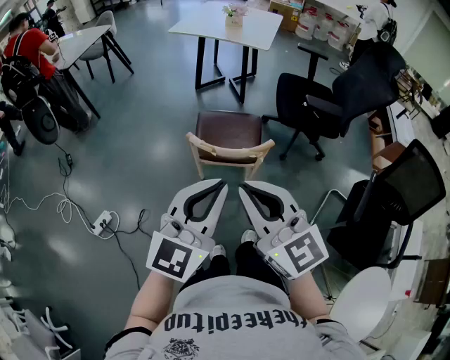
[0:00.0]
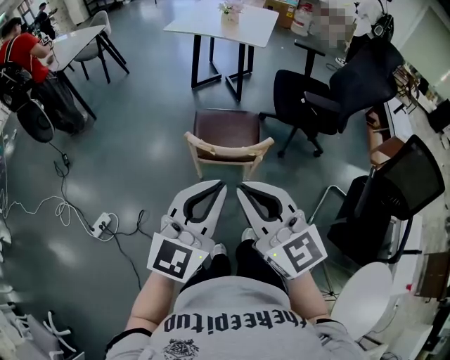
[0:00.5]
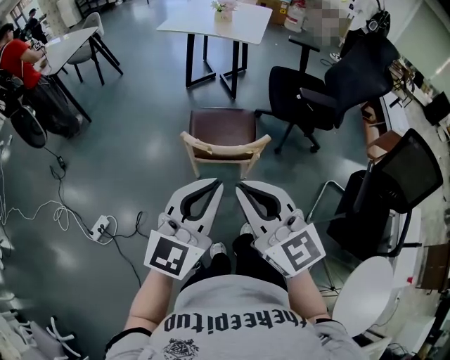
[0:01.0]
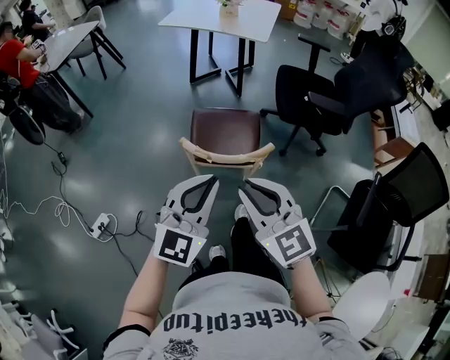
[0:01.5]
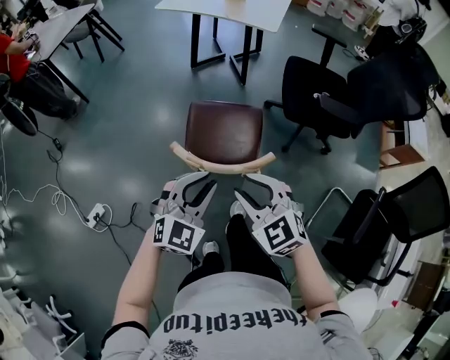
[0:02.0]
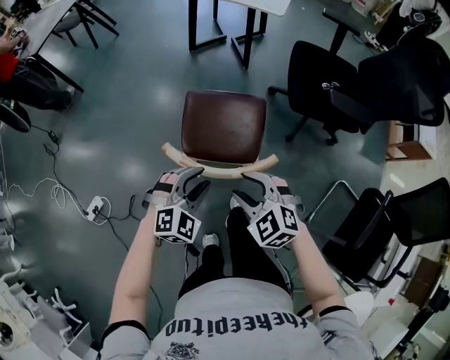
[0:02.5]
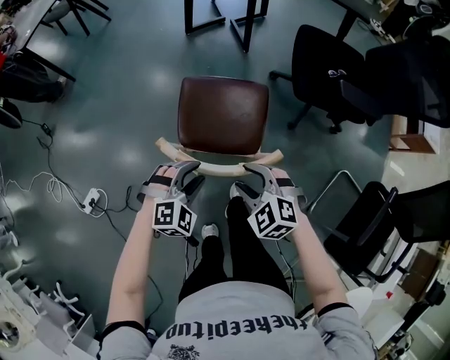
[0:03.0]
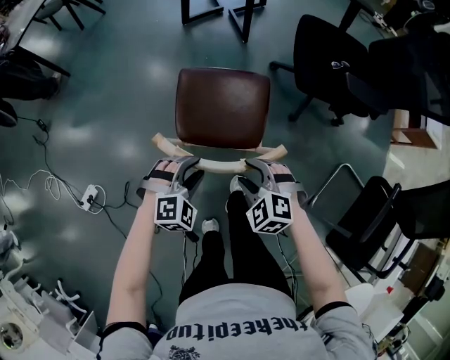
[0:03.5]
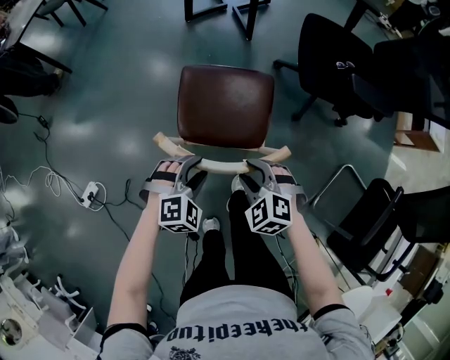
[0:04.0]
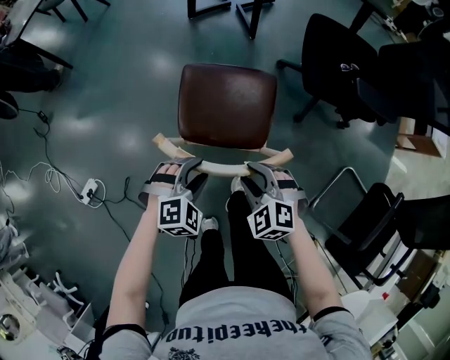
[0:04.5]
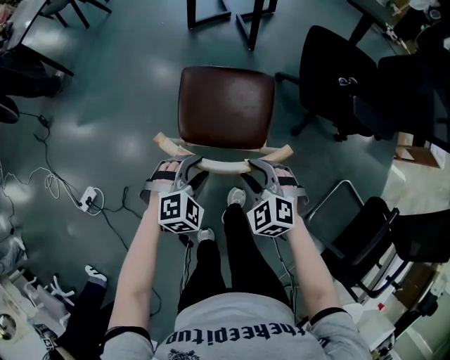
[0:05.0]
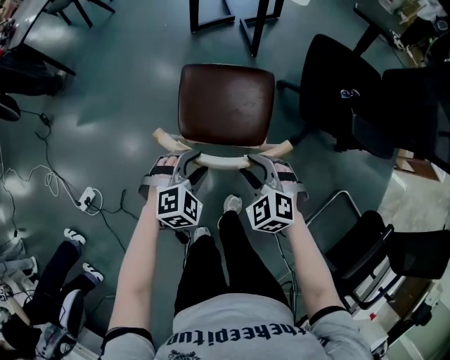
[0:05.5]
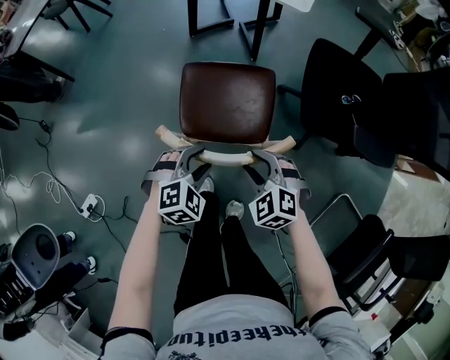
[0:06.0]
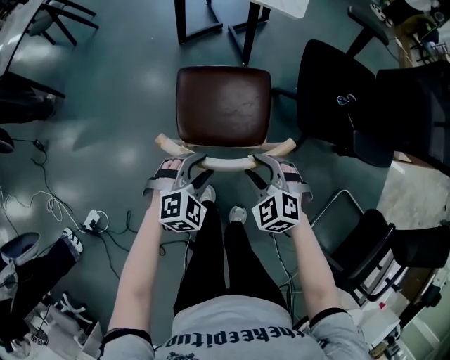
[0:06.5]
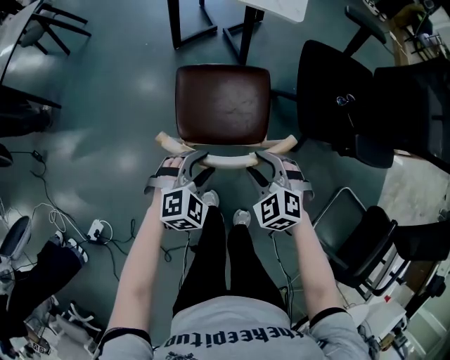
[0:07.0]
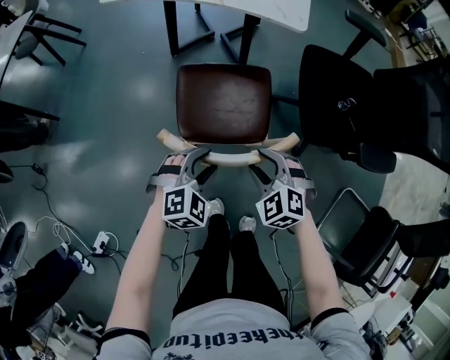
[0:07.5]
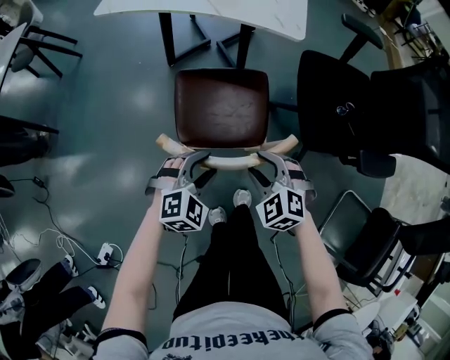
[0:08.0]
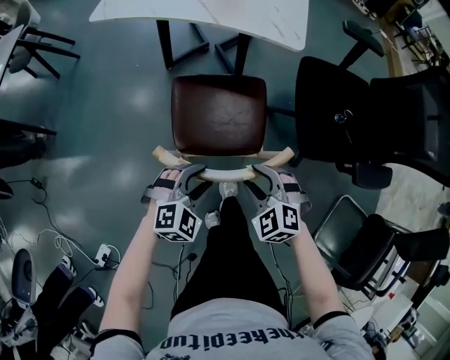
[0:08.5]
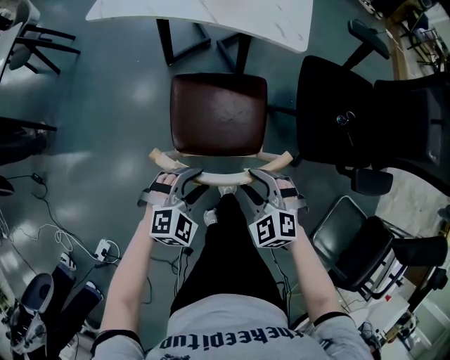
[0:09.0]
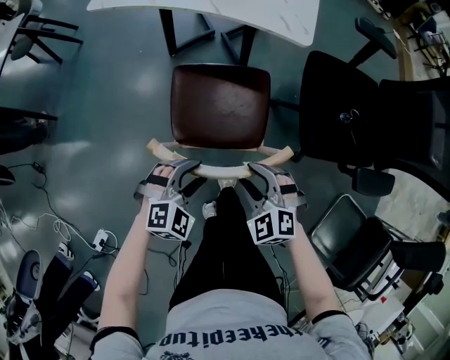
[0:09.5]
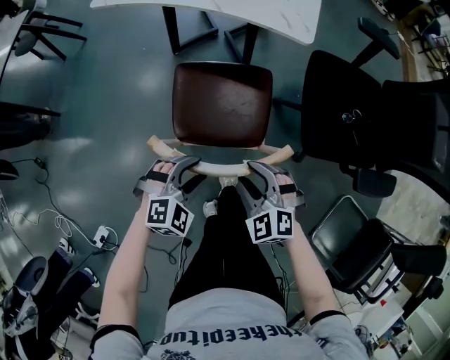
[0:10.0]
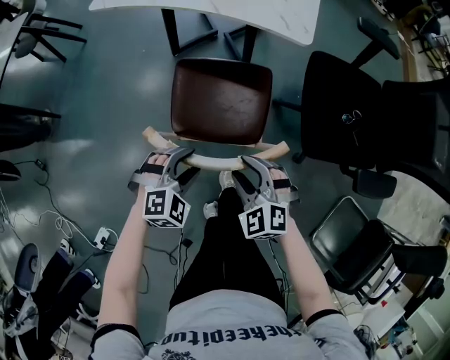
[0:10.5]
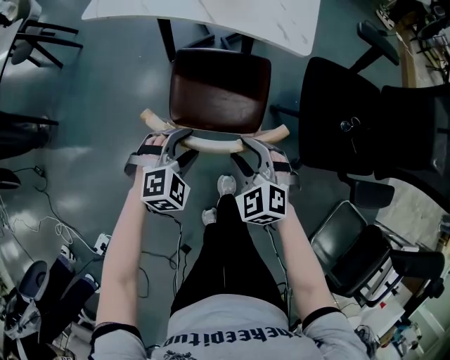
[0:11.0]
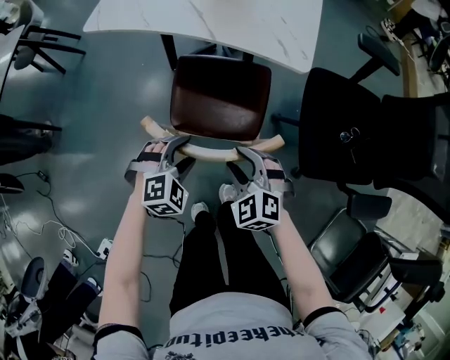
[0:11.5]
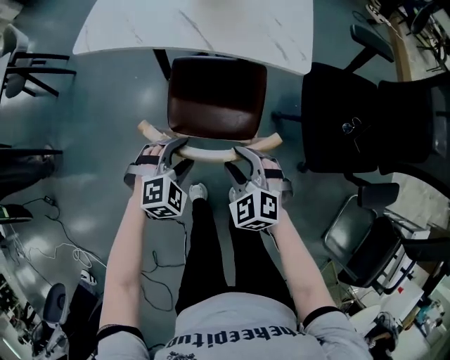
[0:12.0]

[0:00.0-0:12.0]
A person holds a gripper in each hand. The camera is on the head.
0:00.0 to 0:02.0: The two grippers go approximately 25 cm downward and forward. The left gripper rotates some 30 degrees. The right gripper tilts its fingers approximately 30 degrees downward, and opens its fingers.
0:02.0 to 0:04.0: The two grippers go roughly 20 cm downward. The left gripper angles its fingers downward, by some 30 degrees, and opens up, while the right gripper turns by about 30 degrees.
0:04.0 to 0:06.0: Both grippers move forward, about 15 cm.
0:06.0 to 0:08.0: Both grippers travel together forward, approximately 15 cm.
0:08.0 to 0:10.0: The grippers move only a little.
0:10.0 to 0:12.0: The right gripper goes about 15 cm forward and to the left. Meanwhile the left gripper shifts approximately 15 cm forward.

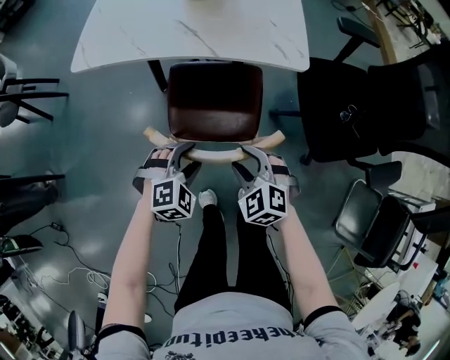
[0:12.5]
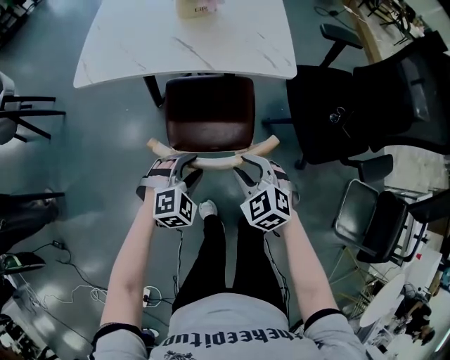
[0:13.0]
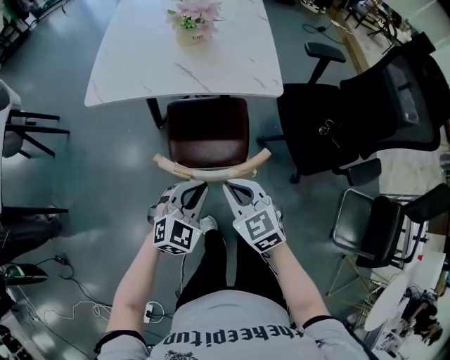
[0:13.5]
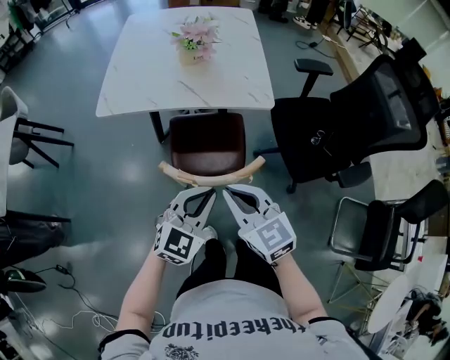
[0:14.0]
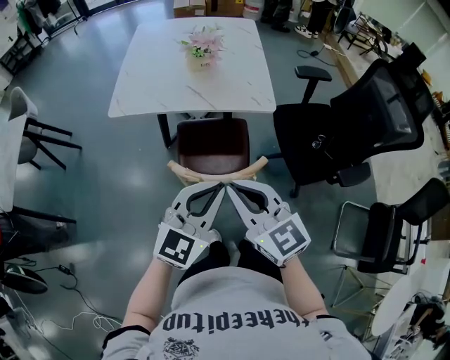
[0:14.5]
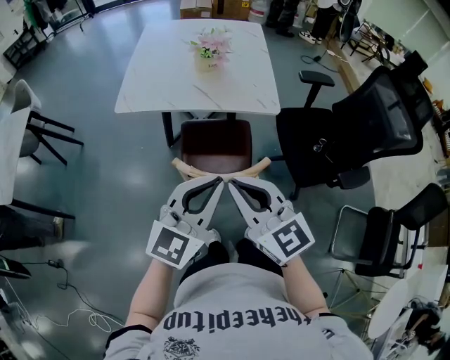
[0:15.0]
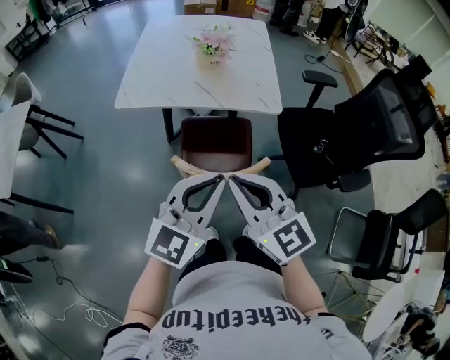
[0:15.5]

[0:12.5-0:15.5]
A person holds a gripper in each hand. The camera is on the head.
0:12.5 to 0:14.0: Both grippers travel together upward, approximately 20 cm. The right gripper swivels roughly 40 degrees, and closes up; the left gripper points its fingers approximately 30 degrees further upward, and closes its fingers.
0:14.0 to 0:15.5: Both grippers travel together upward, roughly 15 cm.

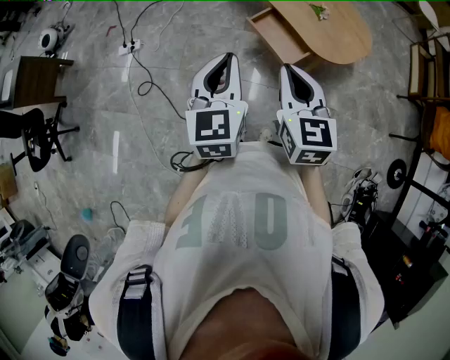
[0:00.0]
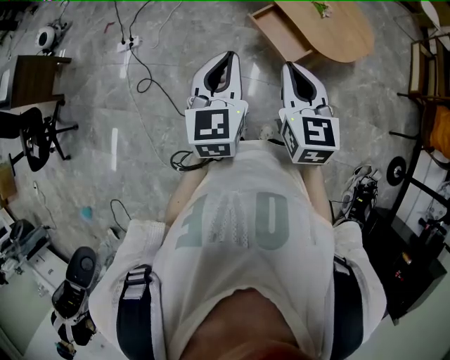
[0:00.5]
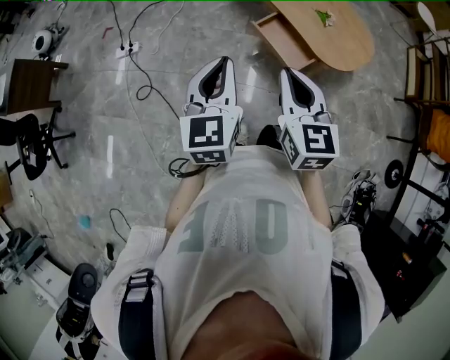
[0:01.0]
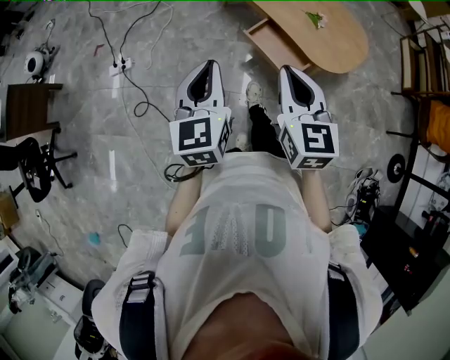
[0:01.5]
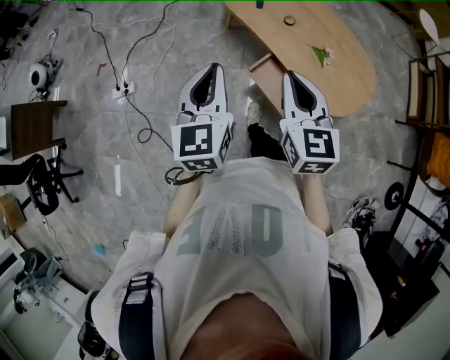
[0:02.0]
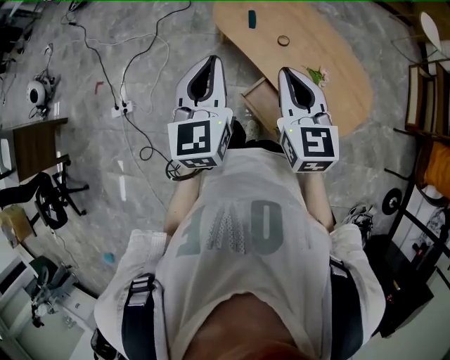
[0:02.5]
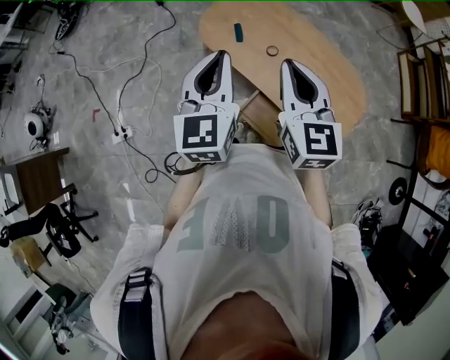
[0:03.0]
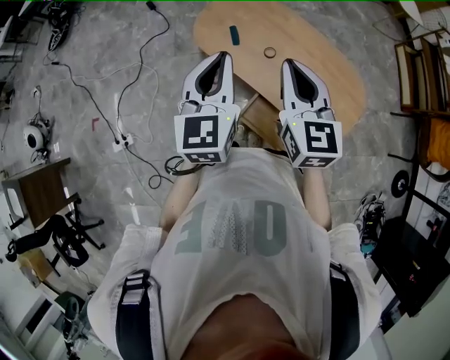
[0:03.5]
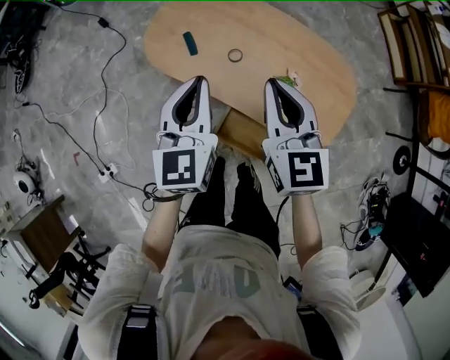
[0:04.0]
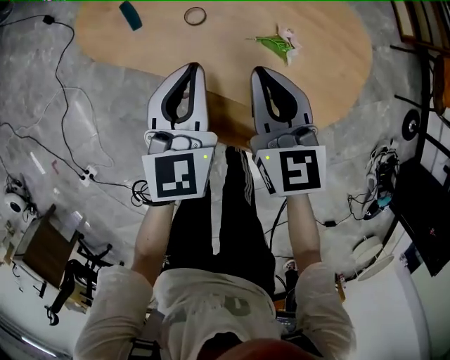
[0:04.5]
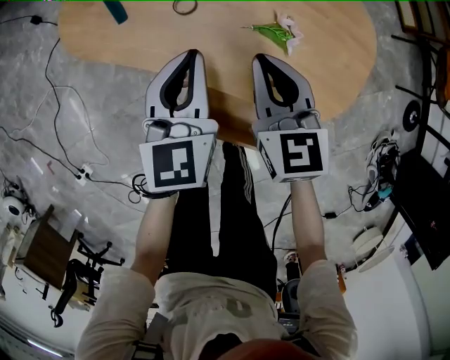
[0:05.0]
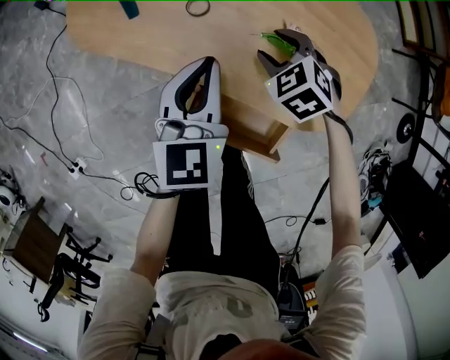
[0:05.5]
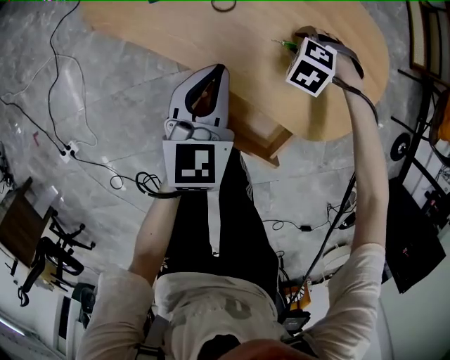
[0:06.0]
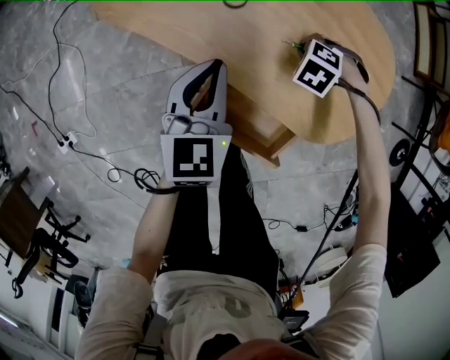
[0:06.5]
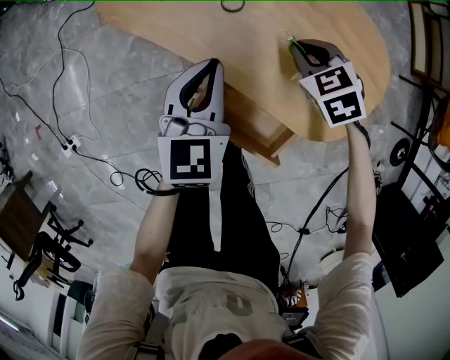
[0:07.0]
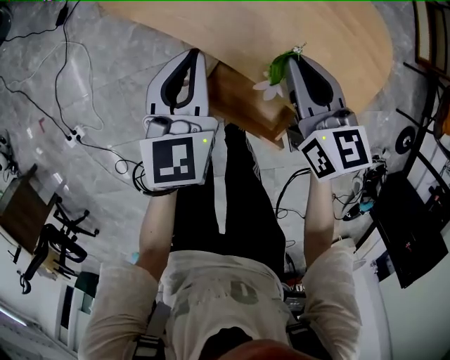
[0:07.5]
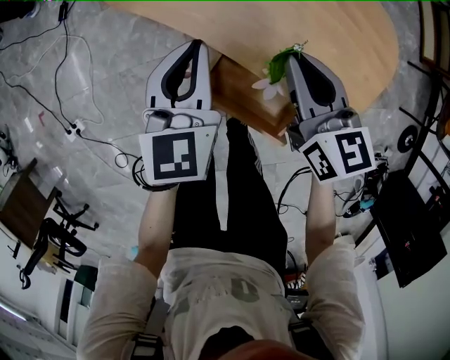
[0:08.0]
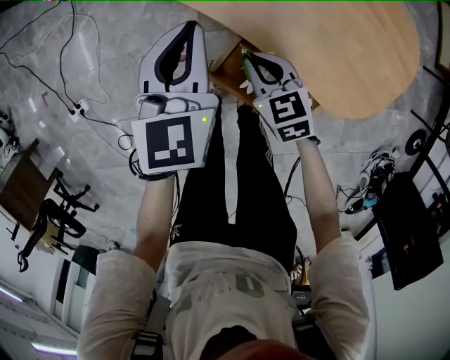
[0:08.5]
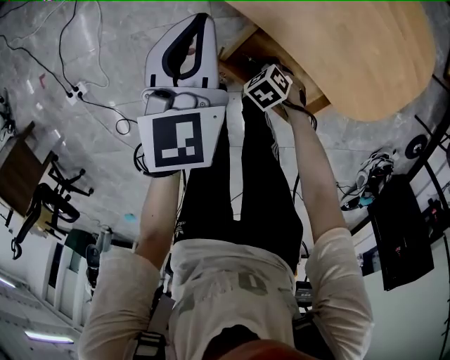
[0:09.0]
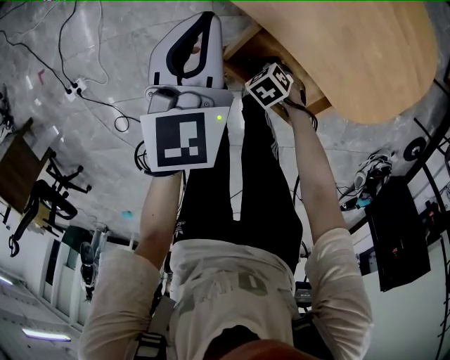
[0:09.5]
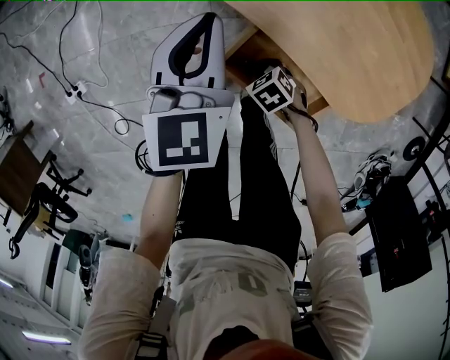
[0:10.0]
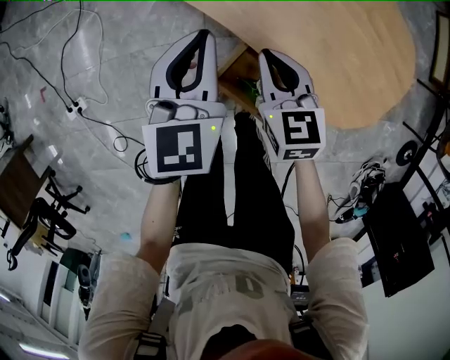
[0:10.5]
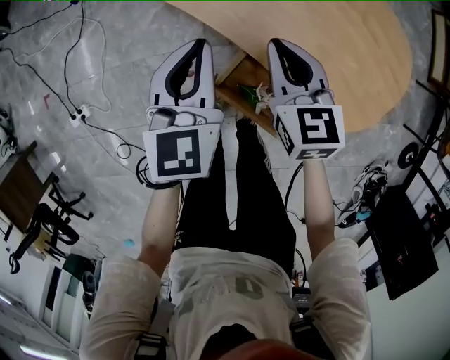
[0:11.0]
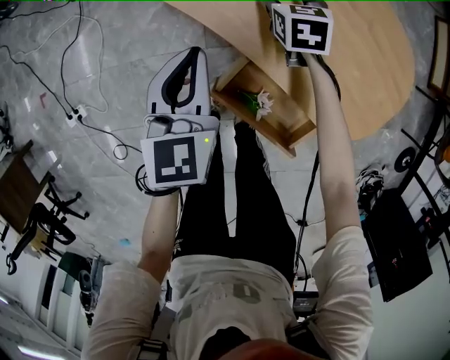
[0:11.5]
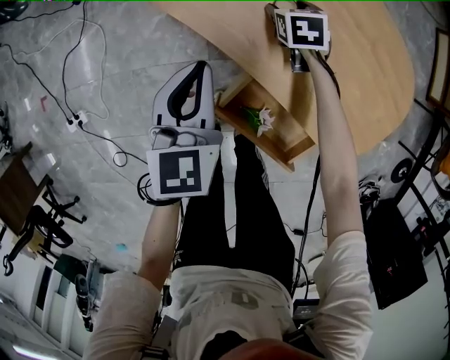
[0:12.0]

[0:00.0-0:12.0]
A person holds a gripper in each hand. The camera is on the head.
0:00.0 to 0:02.0: The grippers both shift forward by roughly 30 cm.
0:02.0 to 0:04.0: The left gripper travels forward and to the right by about 35 cm, and rotates about 20 degrees, while the right gripper shifts approximately 25 cm forward.
0:04.0 to 0:06.0: The left gripper goes about 25 cm downward. Meanwhile the right gripper travels downward by approximately 40 cm, tilts its fingers some 70 degrees downward, and opens its fingers.
0:06.0 to 0:08.0: The right gripper shifts roughly 20 cm upward, tips its fingers upward by about 60 degrees, and closes its fingers. The left gripper shifts by roughly 5 cm.
0:08.0 to 0:10.0: The right gripper moves downward, roughly 30 cm, and tips its fingers downward by approximately 40 degrees; the left gripper moves about 5 cm.
0:10.0 to 0:12.0: The right gripper moves some 25 cm upward and comes back, swivels some 40 degrees, and opens up.
